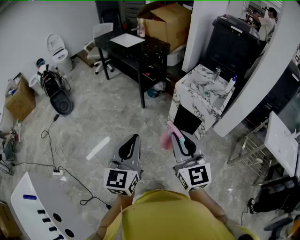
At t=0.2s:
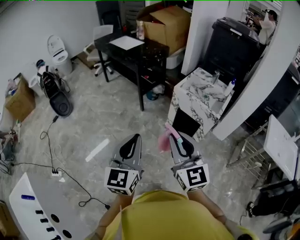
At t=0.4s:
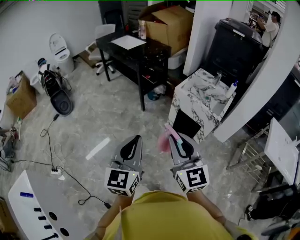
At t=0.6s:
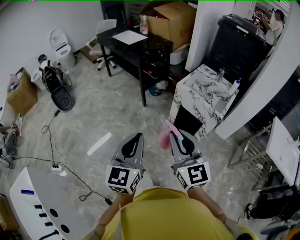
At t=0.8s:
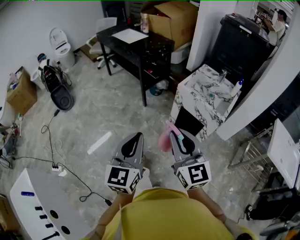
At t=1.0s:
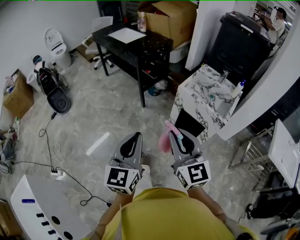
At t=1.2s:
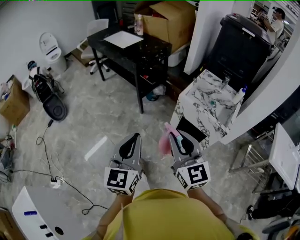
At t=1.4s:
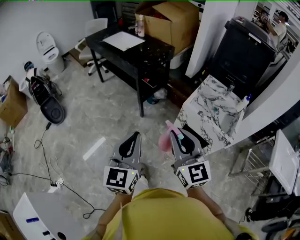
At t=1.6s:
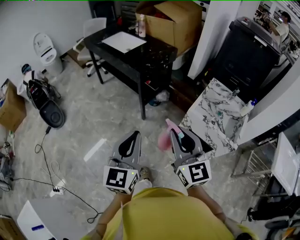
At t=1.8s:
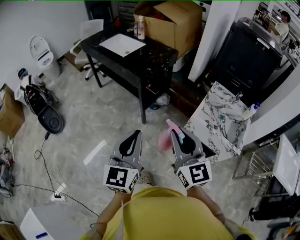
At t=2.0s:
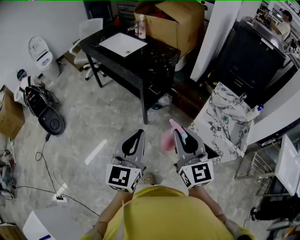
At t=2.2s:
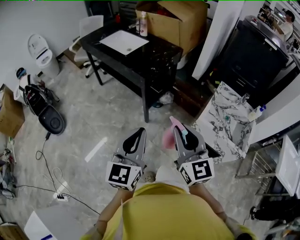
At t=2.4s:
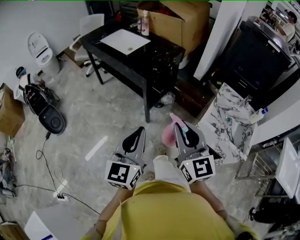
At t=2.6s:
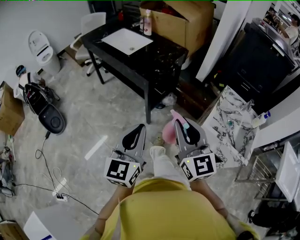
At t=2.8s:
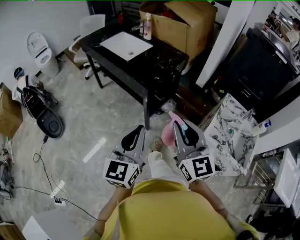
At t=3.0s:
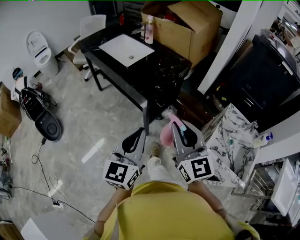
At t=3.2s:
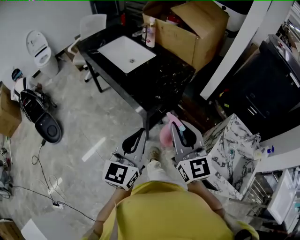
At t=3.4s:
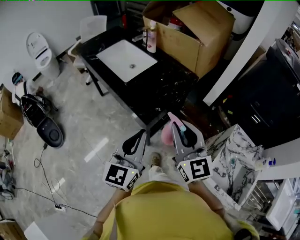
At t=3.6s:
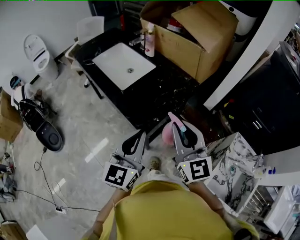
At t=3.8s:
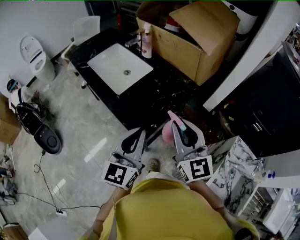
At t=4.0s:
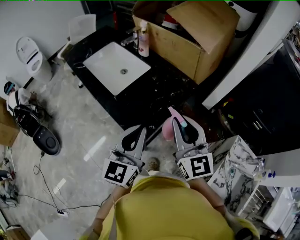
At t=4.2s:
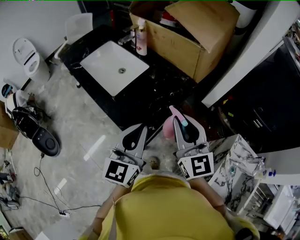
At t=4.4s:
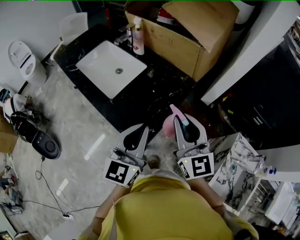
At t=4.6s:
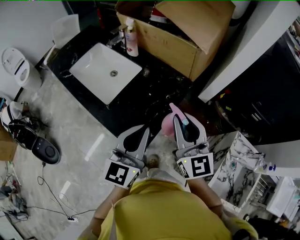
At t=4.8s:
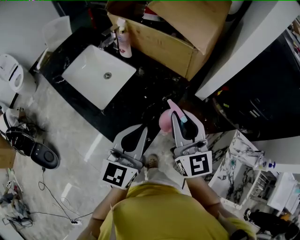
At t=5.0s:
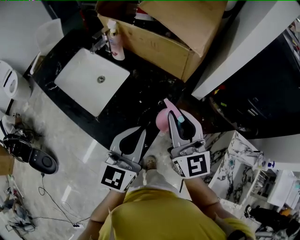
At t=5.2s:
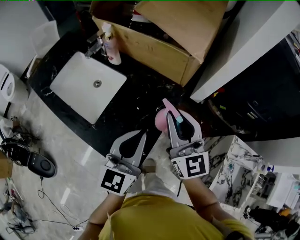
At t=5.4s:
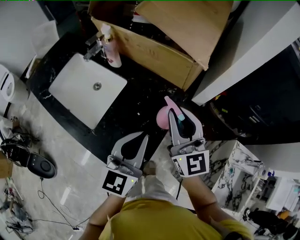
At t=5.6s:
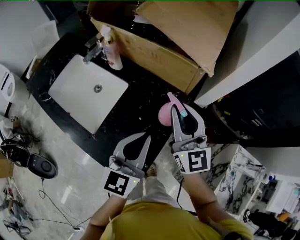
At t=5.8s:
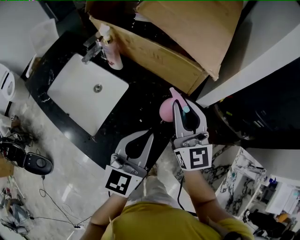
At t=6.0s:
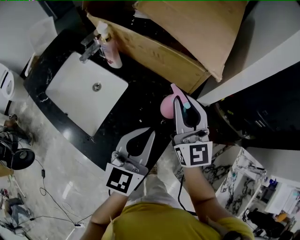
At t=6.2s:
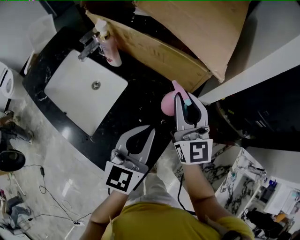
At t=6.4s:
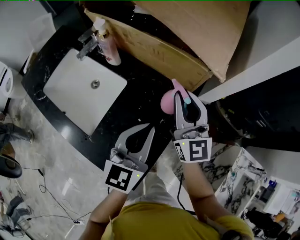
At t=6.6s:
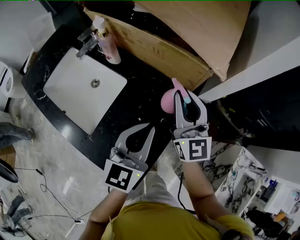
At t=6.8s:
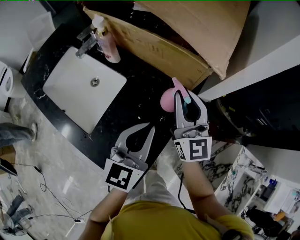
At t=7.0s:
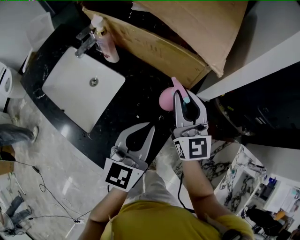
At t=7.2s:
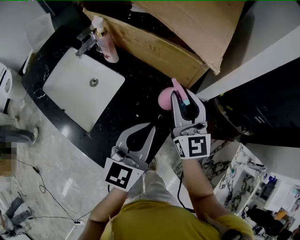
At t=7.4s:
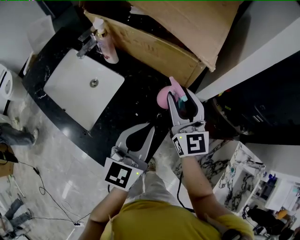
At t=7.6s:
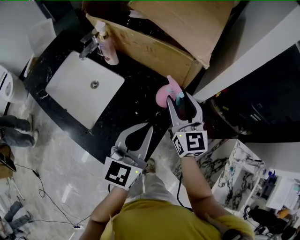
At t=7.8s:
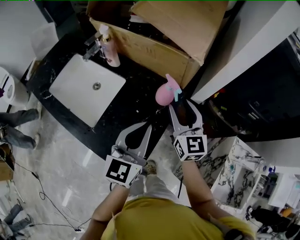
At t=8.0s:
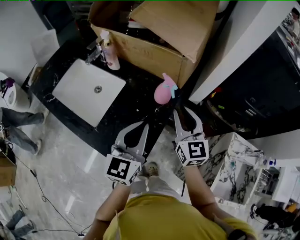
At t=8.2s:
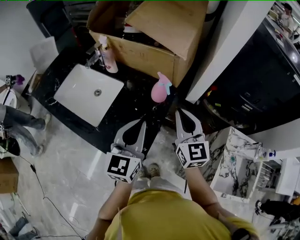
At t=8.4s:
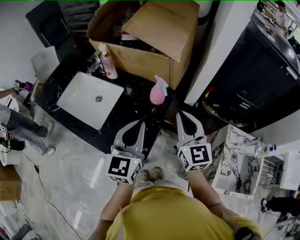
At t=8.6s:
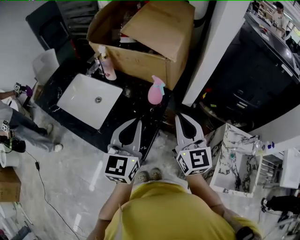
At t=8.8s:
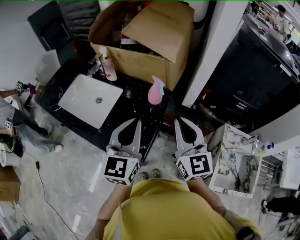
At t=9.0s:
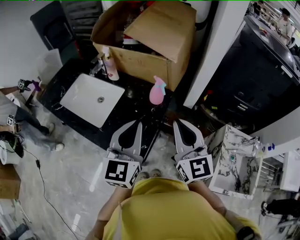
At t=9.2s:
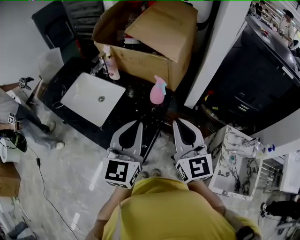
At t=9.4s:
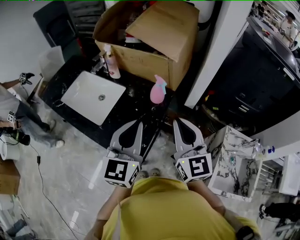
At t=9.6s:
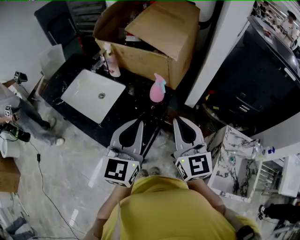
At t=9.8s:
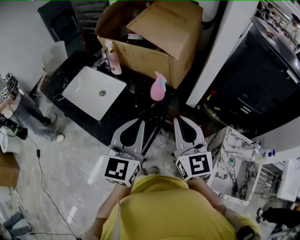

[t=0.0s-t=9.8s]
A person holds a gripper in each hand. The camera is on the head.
t=0.0s to t=1.4s: Both grippers move forward, roughly 30 cm.
t=1.4s to t=2.8s: The two grippers go approximately 30 cm forward.
t=2.8s to t=4.2s: The grippers both shift forward by approximately 40 cm.
t=4.2s to t=5.6s: Both grippers travel together forward, roughly 20 cm.
t=5.6s to t=7.0s: The left gripper changes place by about 5 cm. Meanwhile the right gripper shifts some 5 cm forward.
t=7.0s to t=8.4s: The right gripper shifts roughly 20 cm backward, and opens, then closes again; the left gripper goes approximately 15 cm backward and upward.
t=8.4s to t=9.8s: The left gripper changes place by approximately 5 cm. Meanwhile the right gripper is displaced backward by some 5 cm.

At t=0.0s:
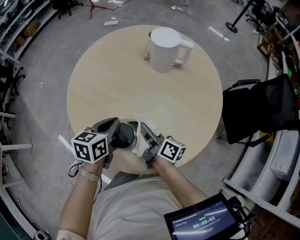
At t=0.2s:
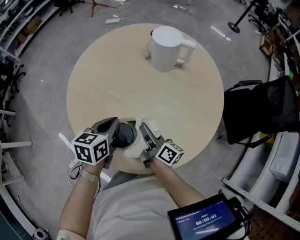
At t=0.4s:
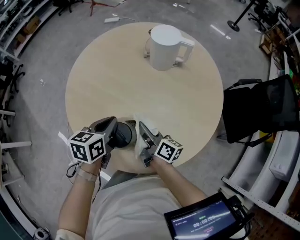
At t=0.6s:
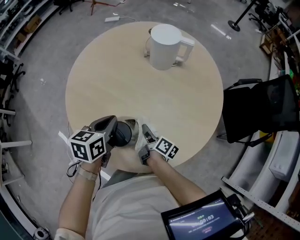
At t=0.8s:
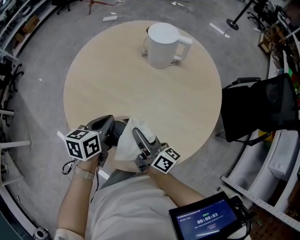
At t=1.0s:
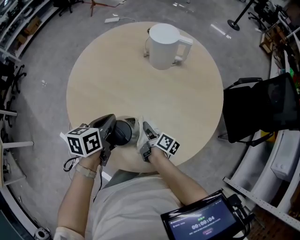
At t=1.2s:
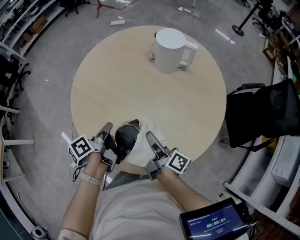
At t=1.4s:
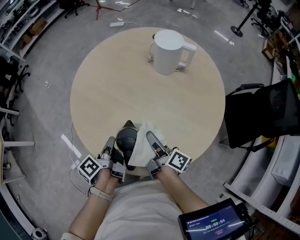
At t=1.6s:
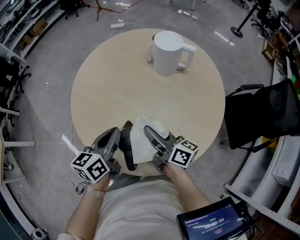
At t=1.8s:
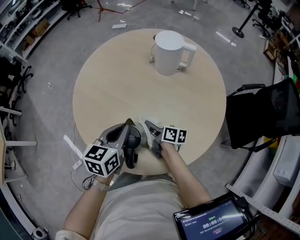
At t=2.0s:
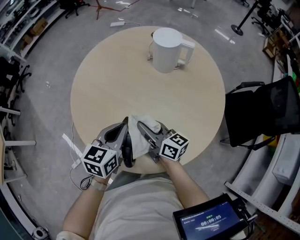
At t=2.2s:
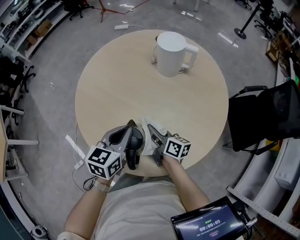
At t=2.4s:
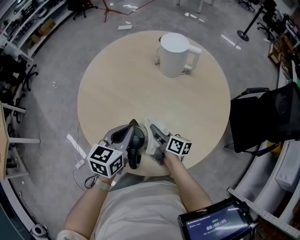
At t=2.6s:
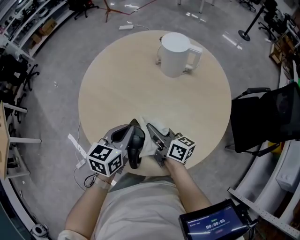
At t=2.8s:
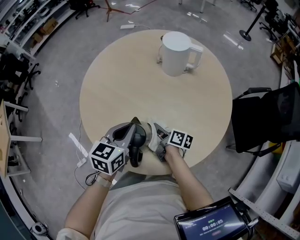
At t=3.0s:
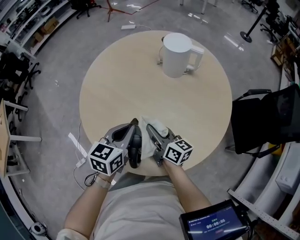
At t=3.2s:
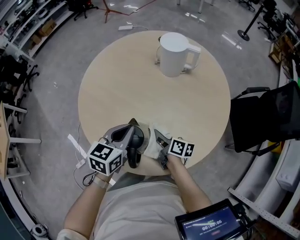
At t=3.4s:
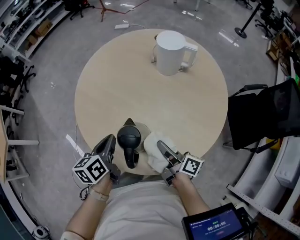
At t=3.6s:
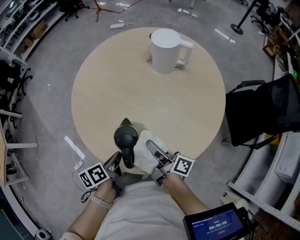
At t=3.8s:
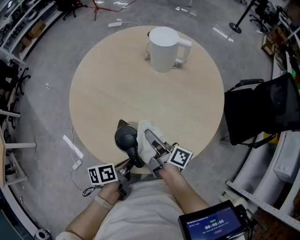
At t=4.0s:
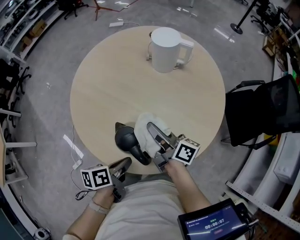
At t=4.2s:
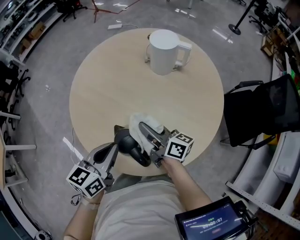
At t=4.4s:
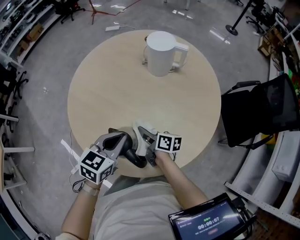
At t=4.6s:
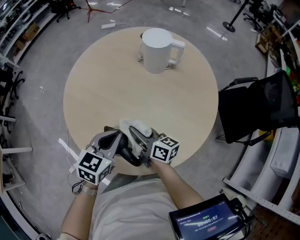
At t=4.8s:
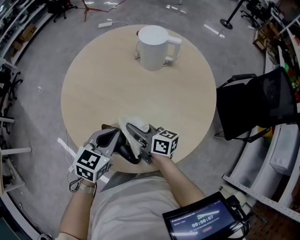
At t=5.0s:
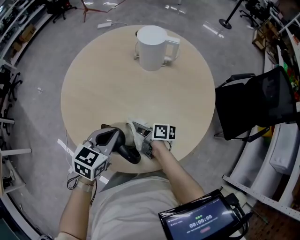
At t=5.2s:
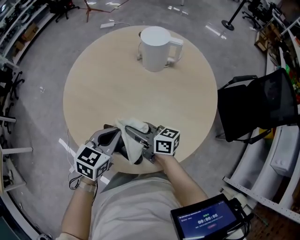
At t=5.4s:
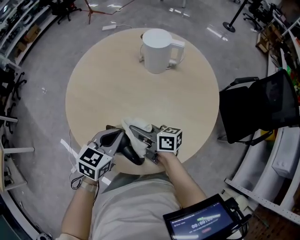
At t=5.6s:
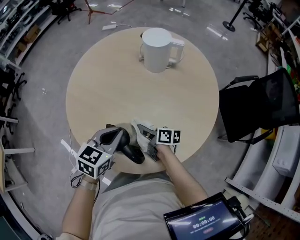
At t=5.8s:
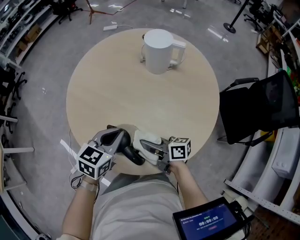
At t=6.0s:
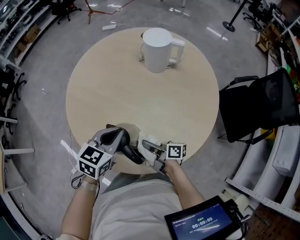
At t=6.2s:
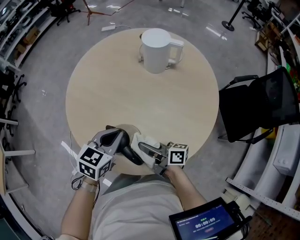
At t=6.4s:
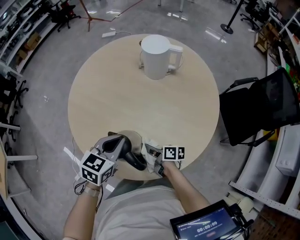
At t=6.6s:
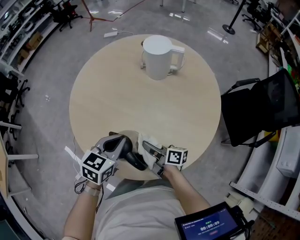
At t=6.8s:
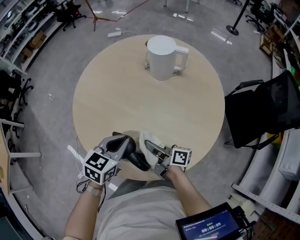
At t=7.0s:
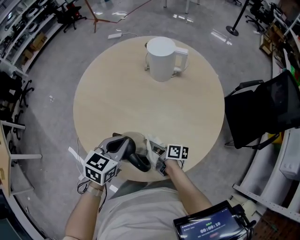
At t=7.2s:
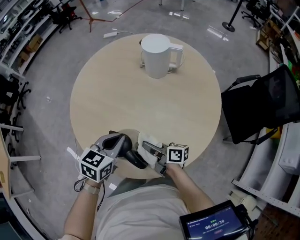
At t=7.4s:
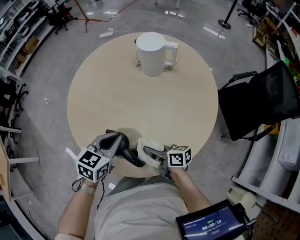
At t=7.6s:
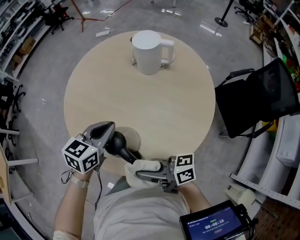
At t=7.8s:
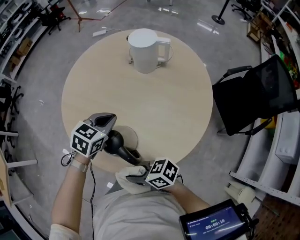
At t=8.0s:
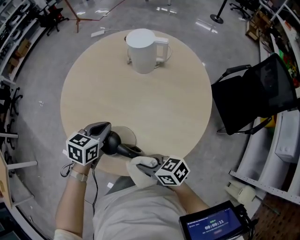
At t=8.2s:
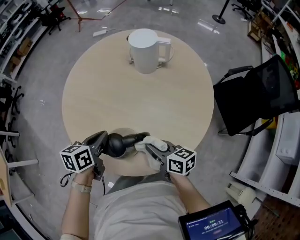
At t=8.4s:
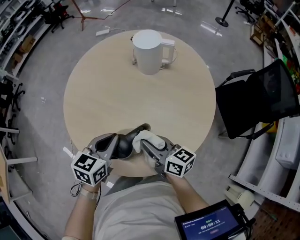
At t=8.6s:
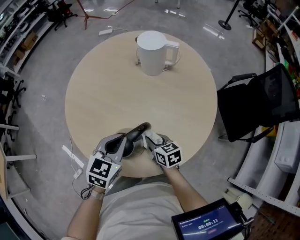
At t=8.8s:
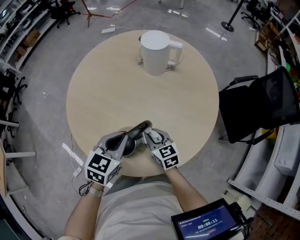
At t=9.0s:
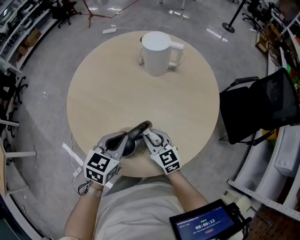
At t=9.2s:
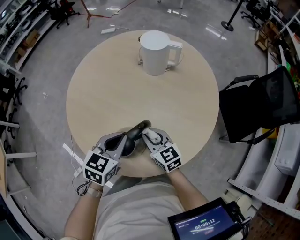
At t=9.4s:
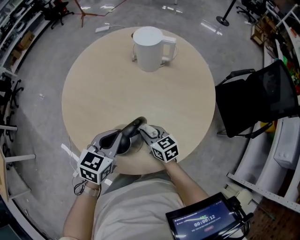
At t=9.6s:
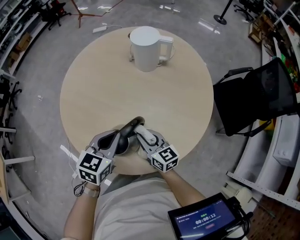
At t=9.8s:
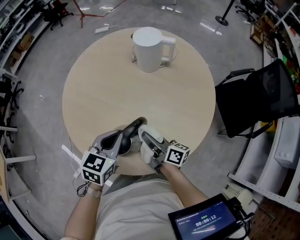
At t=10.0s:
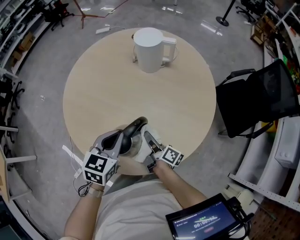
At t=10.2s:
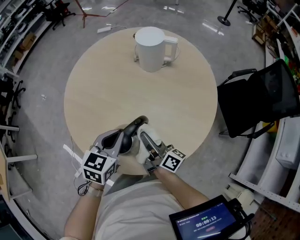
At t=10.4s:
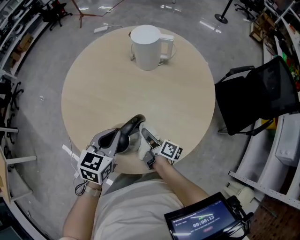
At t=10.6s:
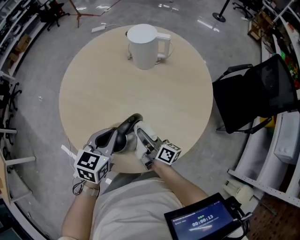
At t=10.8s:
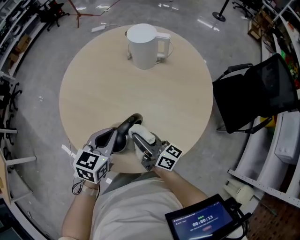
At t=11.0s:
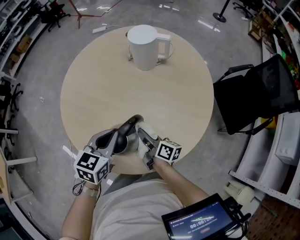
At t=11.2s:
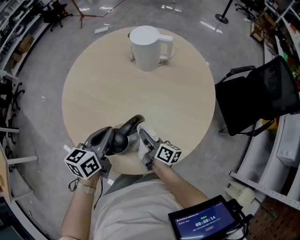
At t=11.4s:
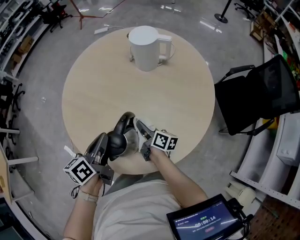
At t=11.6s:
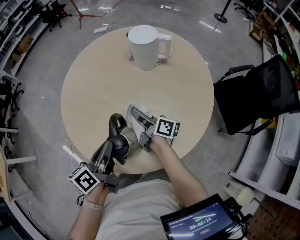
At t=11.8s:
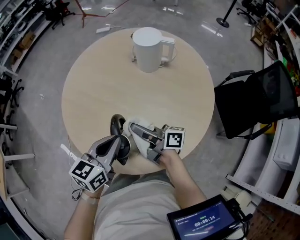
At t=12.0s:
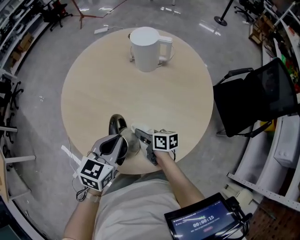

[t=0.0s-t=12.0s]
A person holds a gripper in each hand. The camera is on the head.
t=0.0s to t=1.6s: The right gripper moves up and down over some 15 cm, changing direction 3 times, while the left gripper swivels about 20 degrees.
t=1.6s to t=3.0s: The left gripper rotates about 20 degrees. Meanwhile the right gripper swings up and down, some 15 cm each way, with 5 reversals.
t=3.0s to t=4.4s: The left gripper goes downward and returns, roughly 10 cm each way. Meanwhile the right gripper swings up and down, approximately 15 cm each way, with 2 reversals.
t=4.4s to t=6.0s: The right gripper moves up and down over roughly 10 cm, changing direction 5 times.
t=6.0s to t=7.6s: The right gripper moves up and down over roughly 20 cm, changing direction 4 times, and swivels roughly 30 degrees.
t=7.6s to t=9.0s: The right gripper moves up and down over approximately 15 cm, changing direction 2 times, and angles its fingers downward, by approximately 30 degrees.
t=9.0s to t=10.4s: The right gripper goes up and down, some 5 cm each way, reversing 2 times, and rotates around the line of its fingers by about 70 degrees, clockwise from behind.
t=10.4s to t=12.0s: The right gripper goes up and down, roughly 15 cm each way, reversing 3 times, and changes its angle by roughly 30 degrees.

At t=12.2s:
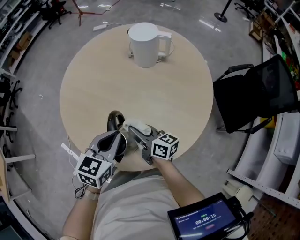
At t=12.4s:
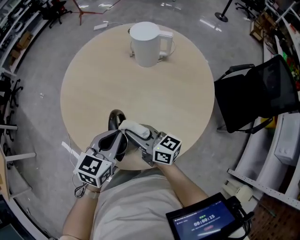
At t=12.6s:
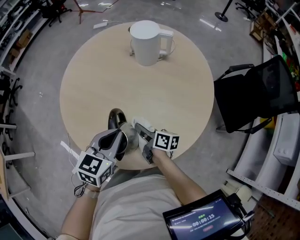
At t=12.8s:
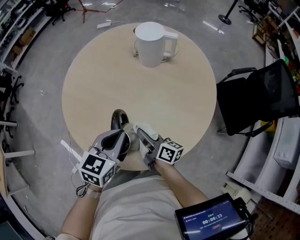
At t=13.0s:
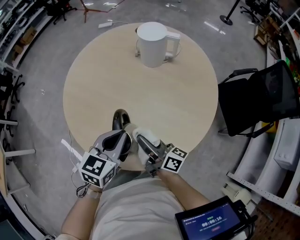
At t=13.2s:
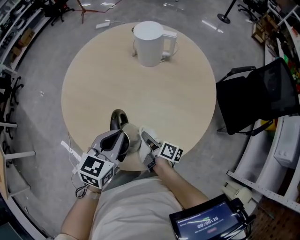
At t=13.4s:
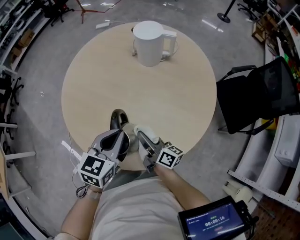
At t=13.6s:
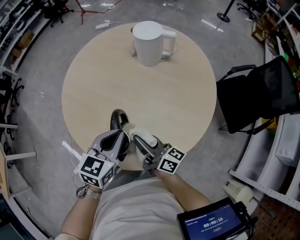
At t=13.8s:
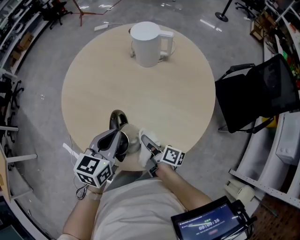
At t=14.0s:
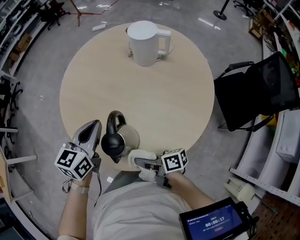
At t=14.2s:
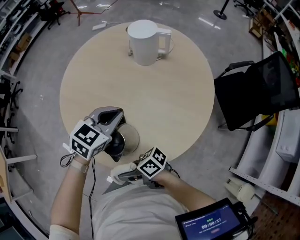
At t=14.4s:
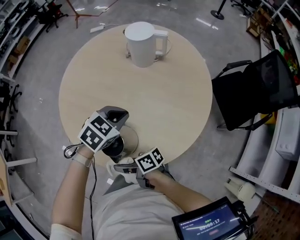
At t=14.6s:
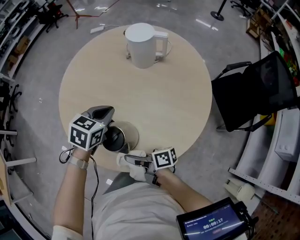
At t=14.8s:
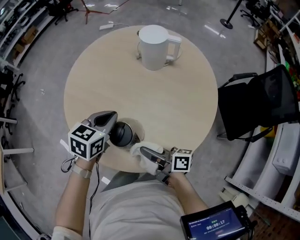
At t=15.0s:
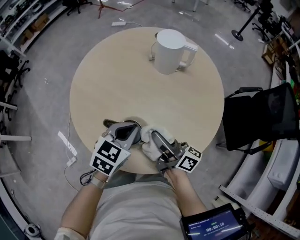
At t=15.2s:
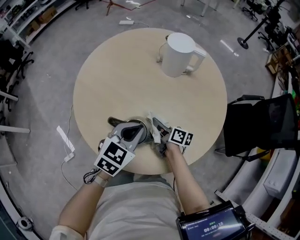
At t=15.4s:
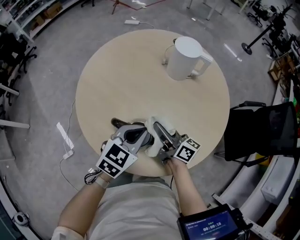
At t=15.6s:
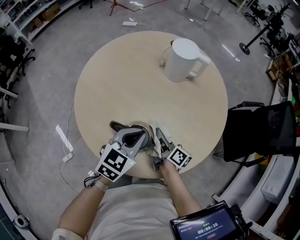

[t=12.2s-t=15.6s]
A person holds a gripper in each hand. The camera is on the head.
t=12.2s to t=13.8s: The right gripper moves up and down over approximately 10 cm, changing direction 5 times, and rotates approximately 30 degrees.
t=13.8s to t=15.6s: The right gripper swings up and down, approximately 15 cm each way, with 3 reversals.
